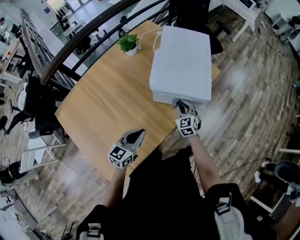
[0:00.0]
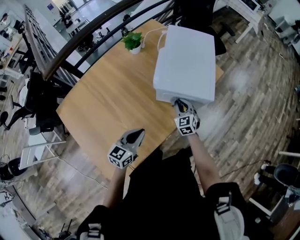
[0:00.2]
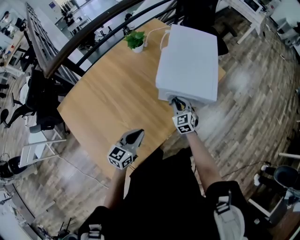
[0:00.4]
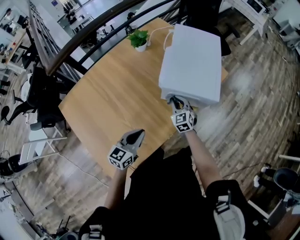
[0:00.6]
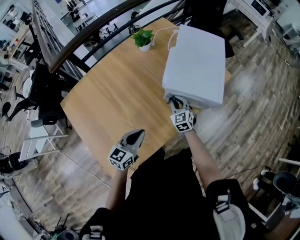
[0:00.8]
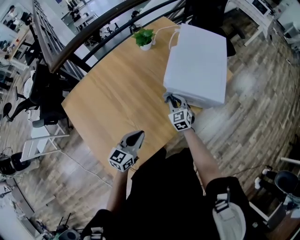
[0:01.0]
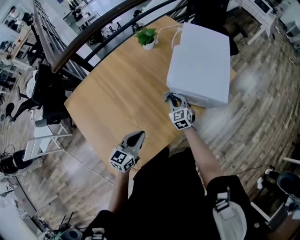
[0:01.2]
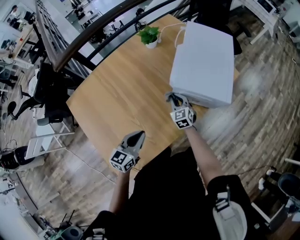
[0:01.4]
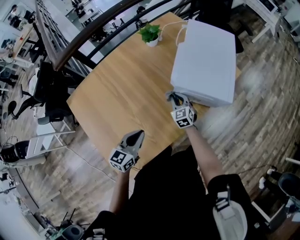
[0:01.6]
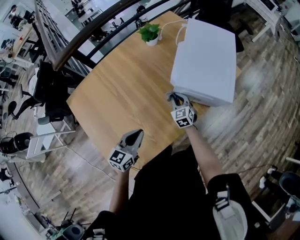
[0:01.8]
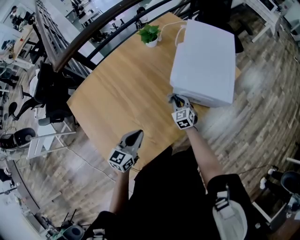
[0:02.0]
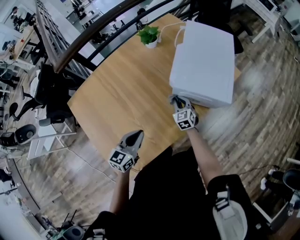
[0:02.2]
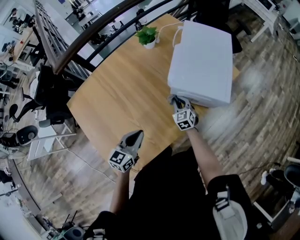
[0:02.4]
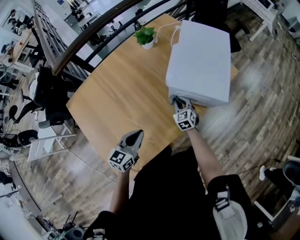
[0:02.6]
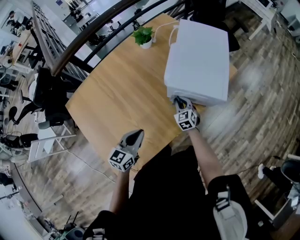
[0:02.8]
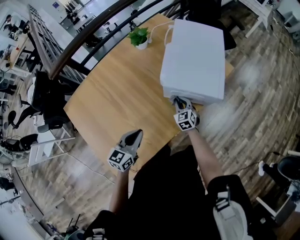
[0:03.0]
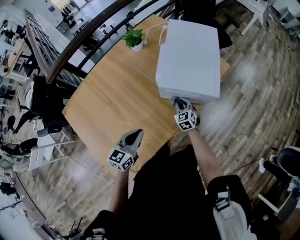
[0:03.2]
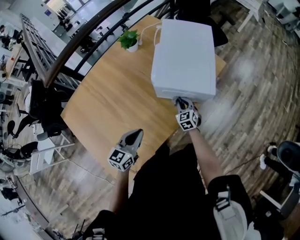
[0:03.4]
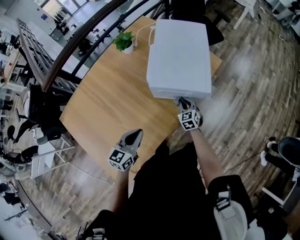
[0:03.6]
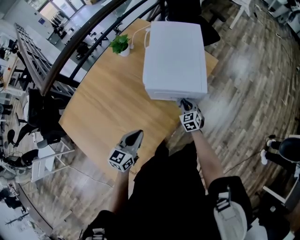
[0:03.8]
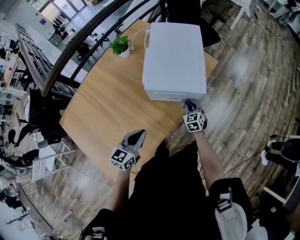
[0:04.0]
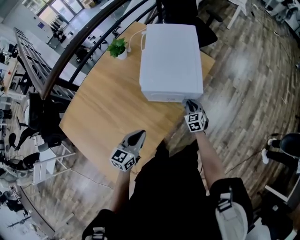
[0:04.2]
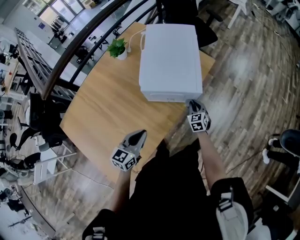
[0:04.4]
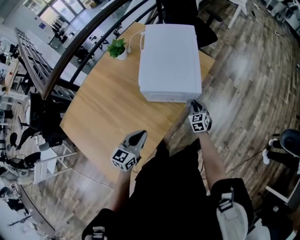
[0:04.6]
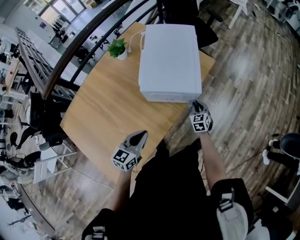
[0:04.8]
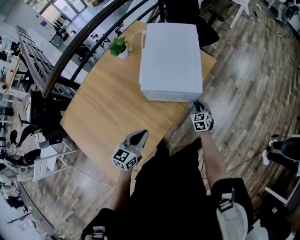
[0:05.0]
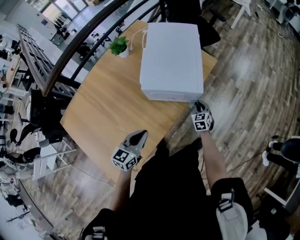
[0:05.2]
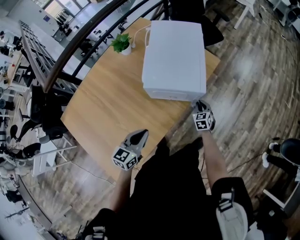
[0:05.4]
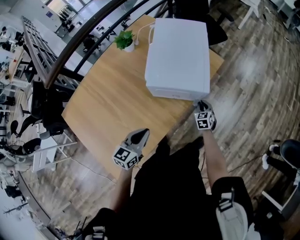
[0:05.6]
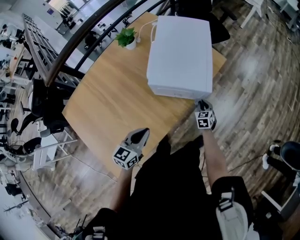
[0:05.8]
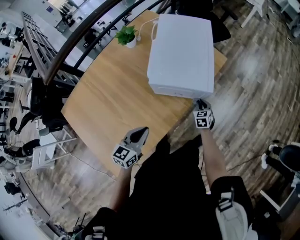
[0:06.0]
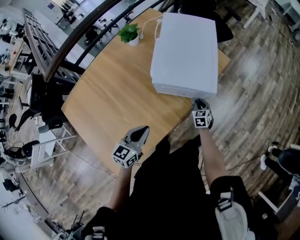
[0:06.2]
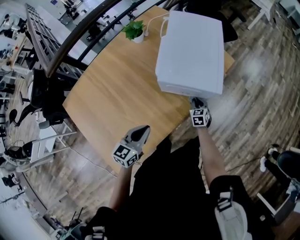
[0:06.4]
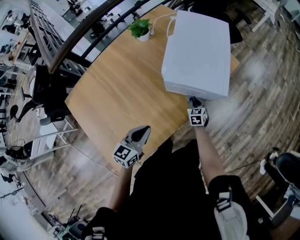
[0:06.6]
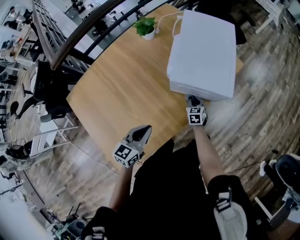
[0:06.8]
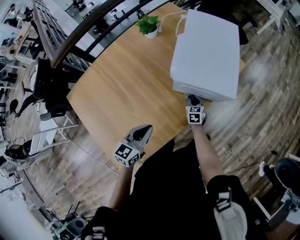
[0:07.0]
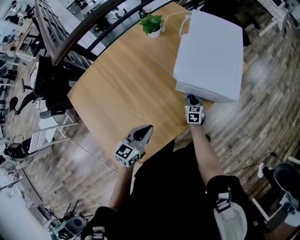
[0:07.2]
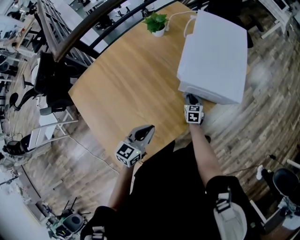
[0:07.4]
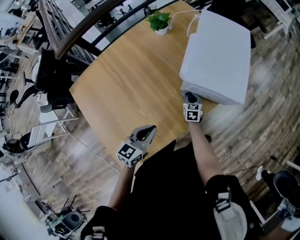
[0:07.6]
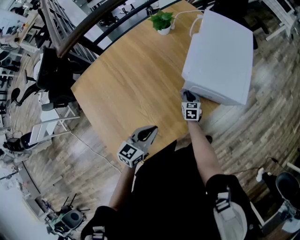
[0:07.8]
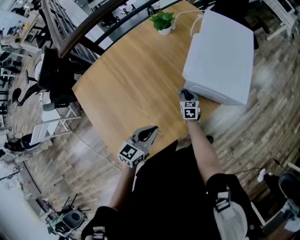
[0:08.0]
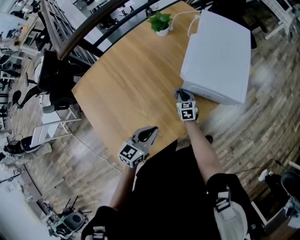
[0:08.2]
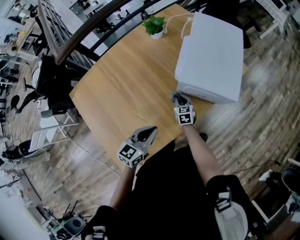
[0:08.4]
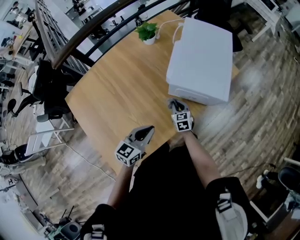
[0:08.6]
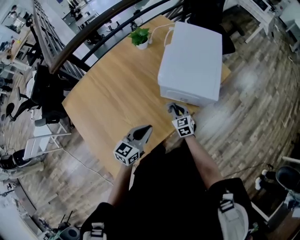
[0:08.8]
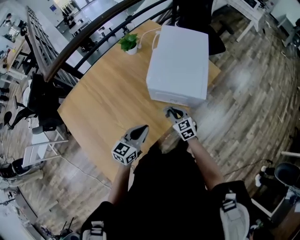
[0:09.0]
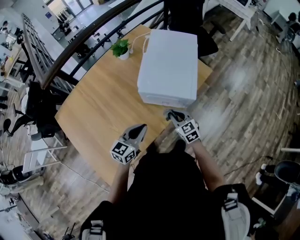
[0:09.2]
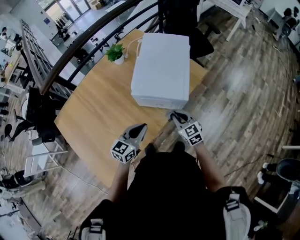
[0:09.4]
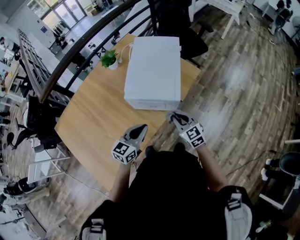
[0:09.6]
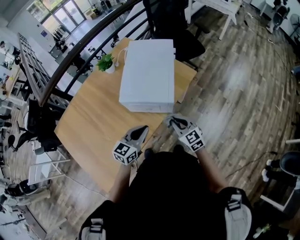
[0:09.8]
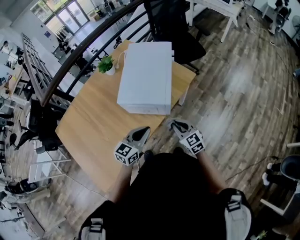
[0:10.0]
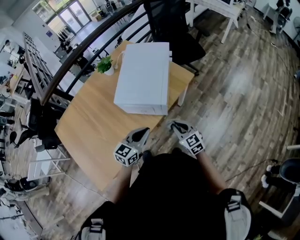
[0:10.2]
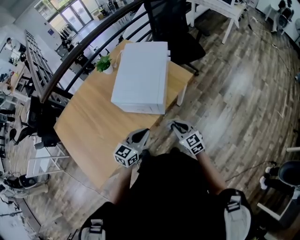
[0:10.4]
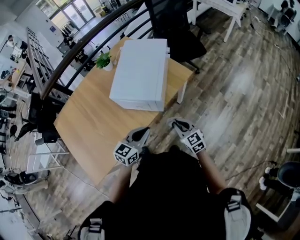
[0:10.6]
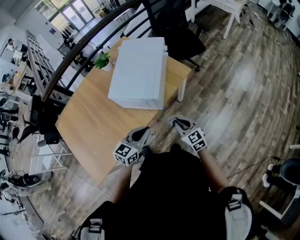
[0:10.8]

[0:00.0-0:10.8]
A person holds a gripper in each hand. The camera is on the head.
0:00.0 to 0:01.6: The left gripper goes about 10 cm to the left. Meanwhile the right gripper is displaced to the left by roughly 15 cm.
0:01.6 to 0:03.0: The right gripper goes some 10 cm to the right.
0:03.0 to 0:04.6: The left gripper heads to the right, covering some 10 cm, while the right gripper travels to the right by roughly 20 cm.
0:04.6 to 0:06.2: The right gripper goes about 5 cm downward.
0:06.2 to 0:07.8: The left gripper goes about 10 cm to the left, while the right gripper travels to the left by about 25 cm.
0:07.8 to 0:09.2: The left gripper heads to the right, forward and upward, covering some 15 cm, while the right gripper heads upward, to the right and backward, covering approximately 25 cm, and swivels some 30 degrees.
0:09.2 to 0:10.8: Both grippers move to the right, approximately 20 cm.

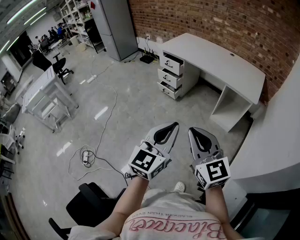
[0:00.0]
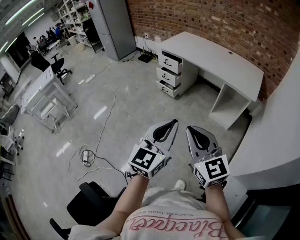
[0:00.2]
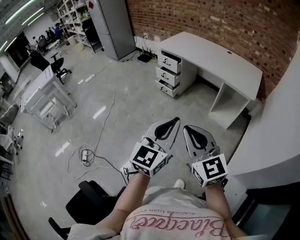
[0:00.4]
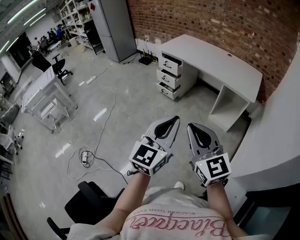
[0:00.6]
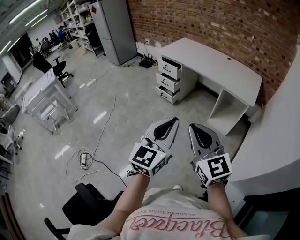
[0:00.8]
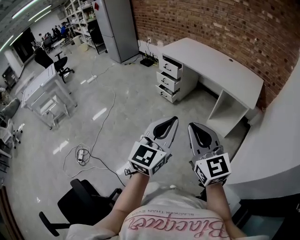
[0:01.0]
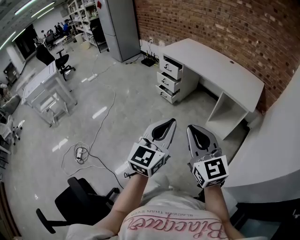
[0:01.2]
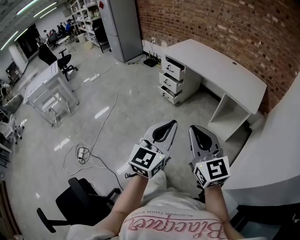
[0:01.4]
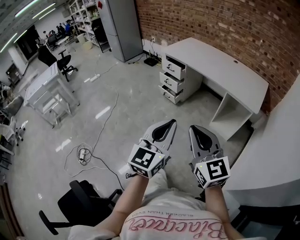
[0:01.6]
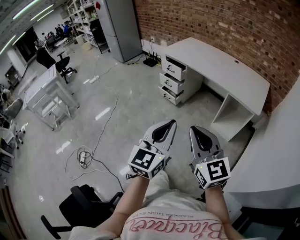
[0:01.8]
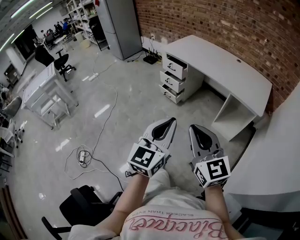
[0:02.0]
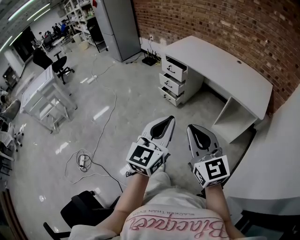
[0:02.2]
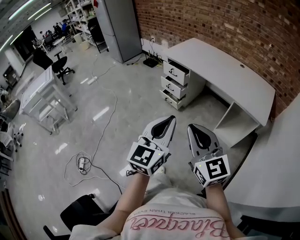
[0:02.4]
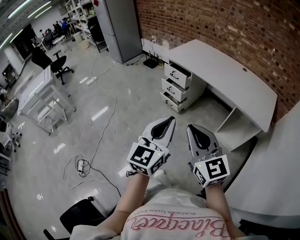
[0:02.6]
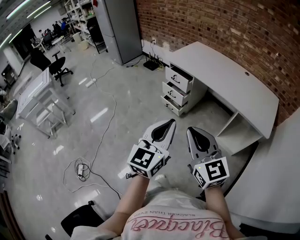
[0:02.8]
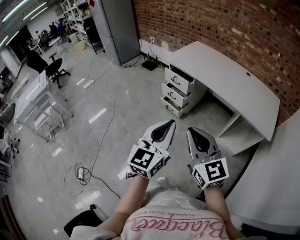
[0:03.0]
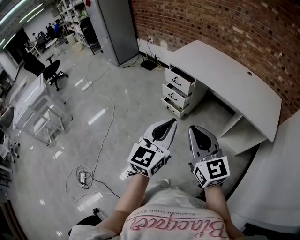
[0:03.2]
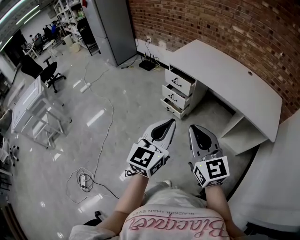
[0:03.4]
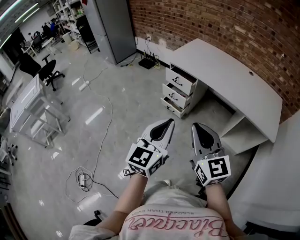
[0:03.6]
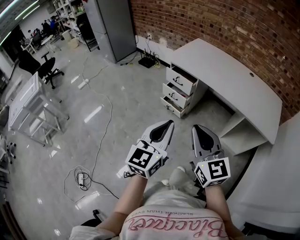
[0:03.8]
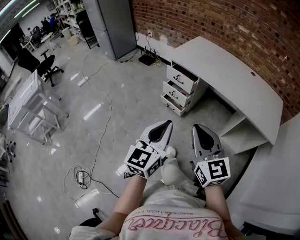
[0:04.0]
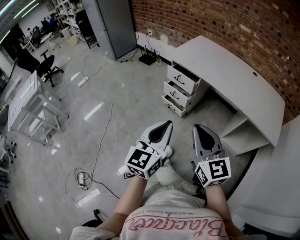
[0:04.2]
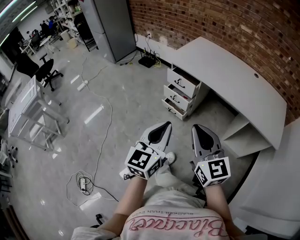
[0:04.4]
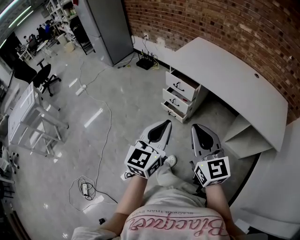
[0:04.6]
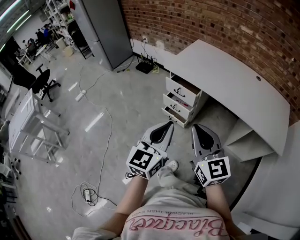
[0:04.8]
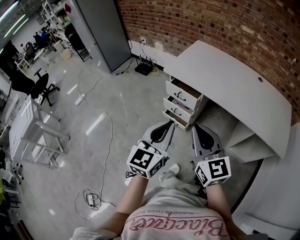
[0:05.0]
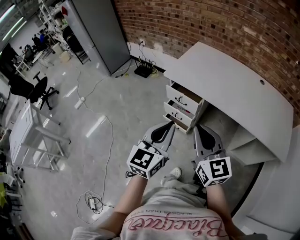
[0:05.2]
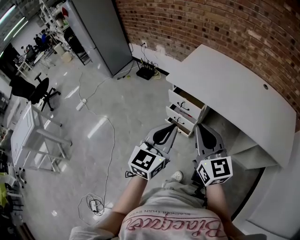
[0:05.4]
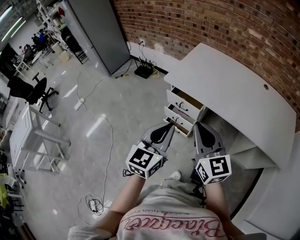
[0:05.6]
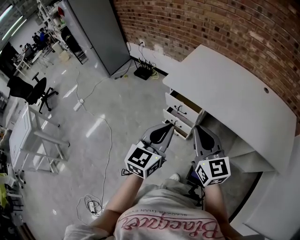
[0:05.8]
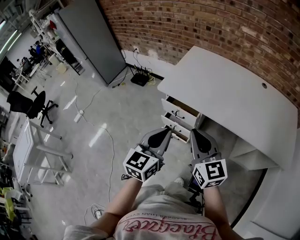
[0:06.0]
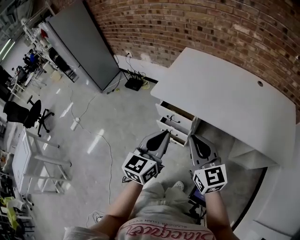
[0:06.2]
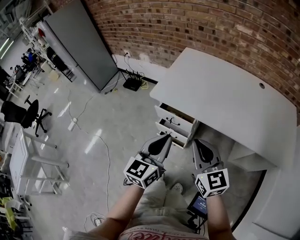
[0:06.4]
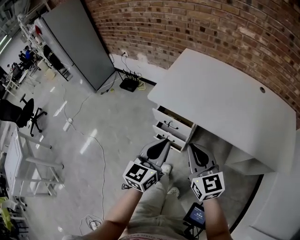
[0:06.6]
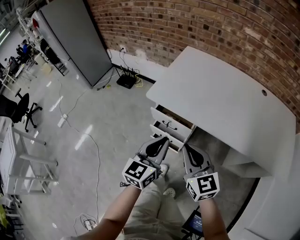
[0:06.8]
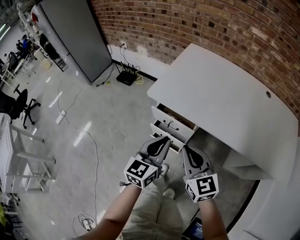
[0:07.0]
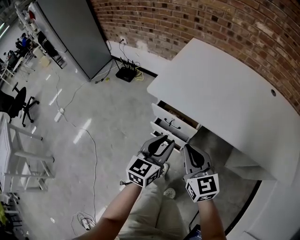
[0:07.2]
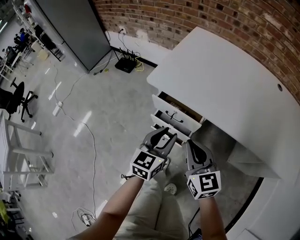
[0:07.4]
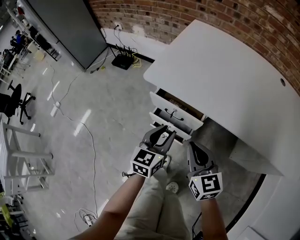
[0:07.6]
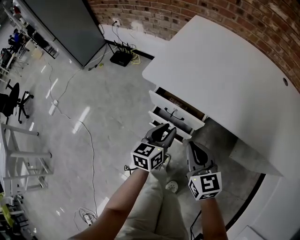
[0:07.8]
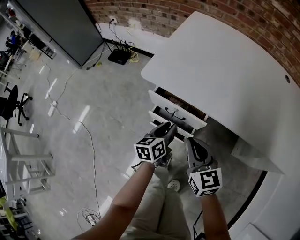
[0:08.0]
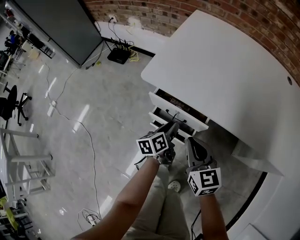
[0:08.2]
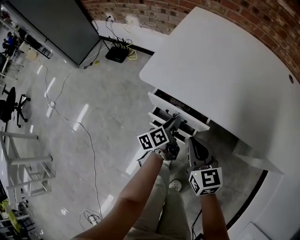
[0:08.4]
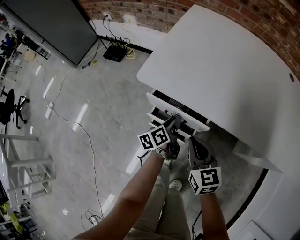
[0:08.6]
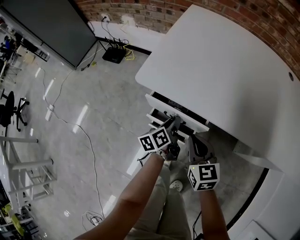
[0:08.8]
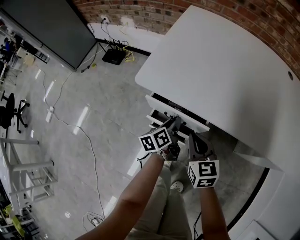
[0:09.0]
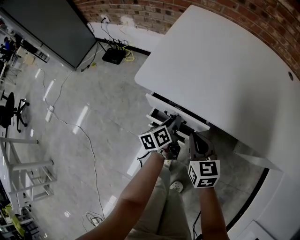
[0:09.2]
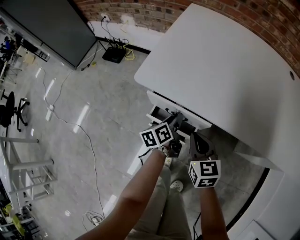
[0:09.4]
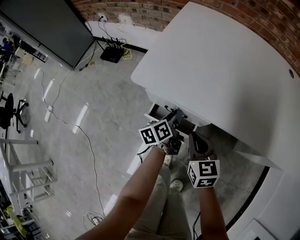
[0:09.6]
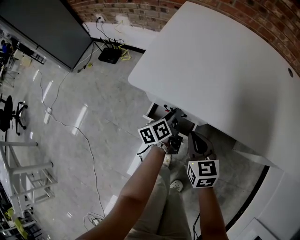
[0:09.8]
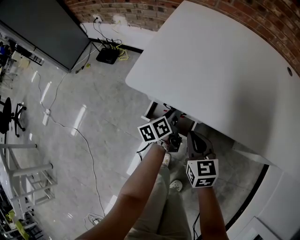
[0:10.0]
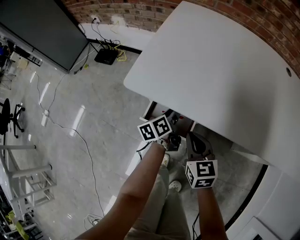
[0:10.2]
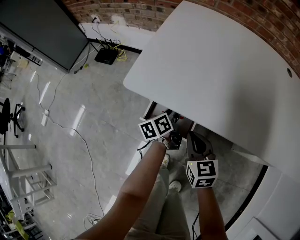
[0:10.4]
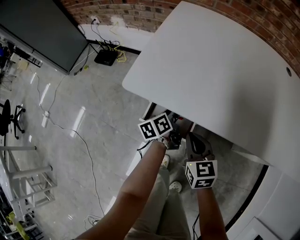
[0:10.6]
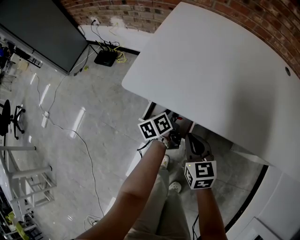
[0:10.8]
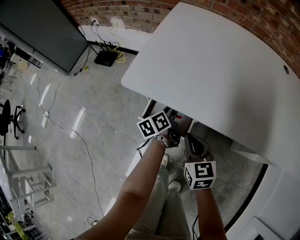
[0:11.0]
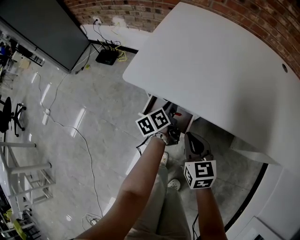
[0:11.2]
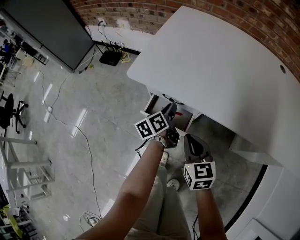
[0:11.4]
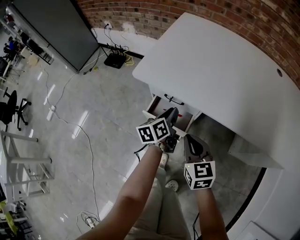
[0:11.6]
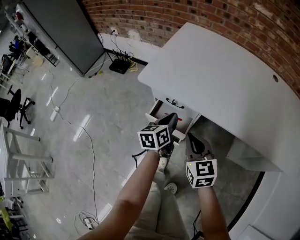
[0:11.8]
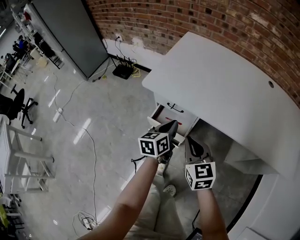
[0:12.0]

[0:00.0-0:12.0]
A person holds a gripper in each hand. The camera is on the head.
0:00.0 to 0:01.6: The right gripper moves some 5 cm.
0:01.6 to 0:03.0: The grippers both shift forward by approximately 25 cm.
0:03.0 to 0:04.4: The left gripper moves forward and to the left, roughly 15 cm. Meanwhile the right gripper moves forward, about 15 cm.
0:04.4 to 0:06.0: Both grippers travel together forward, about 30 cm.
0:06.0 to 0:07.6: Both grippers travel together downward and forward, approximately 30 cm. The left gripper opens its fingers.
0:07.6 to 0:09.0: The grippers both shift downward and forward by approximately 15 cm. The left gripper rotates around the line of its fingers by about 50 degrees, counterclockwise from behind.
0:09.0 to 0:10.4: The left gripper goes roughly 5 cm forward.
0:10.4 to 0:12.0: Both grippers move upward and backward, about 20 cm. The left gripper swivels some 20 degrees, and closes its fingers.

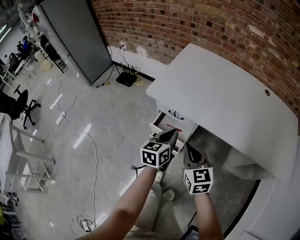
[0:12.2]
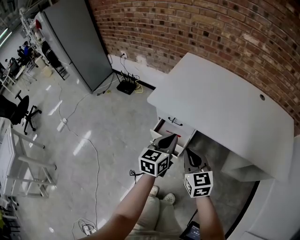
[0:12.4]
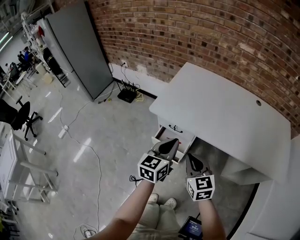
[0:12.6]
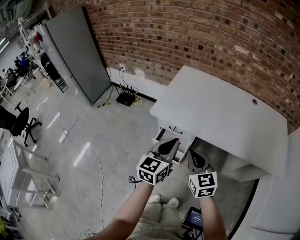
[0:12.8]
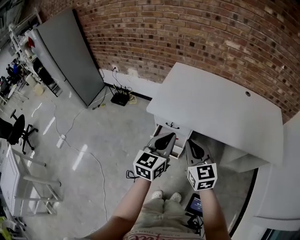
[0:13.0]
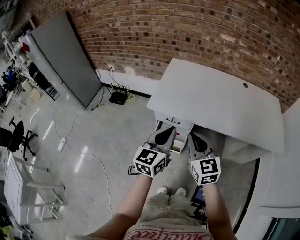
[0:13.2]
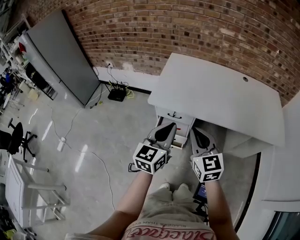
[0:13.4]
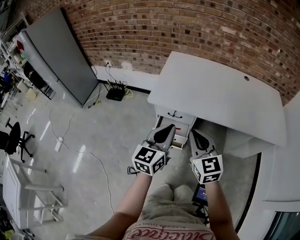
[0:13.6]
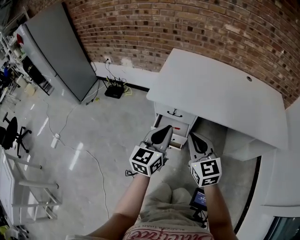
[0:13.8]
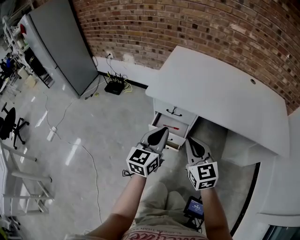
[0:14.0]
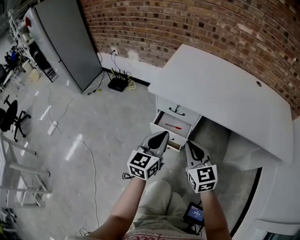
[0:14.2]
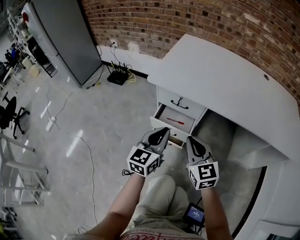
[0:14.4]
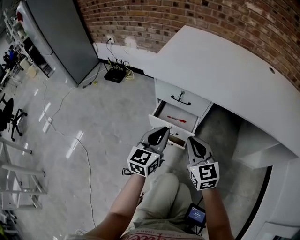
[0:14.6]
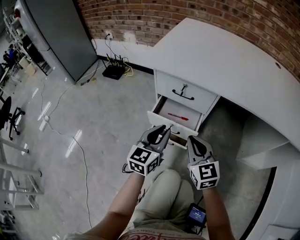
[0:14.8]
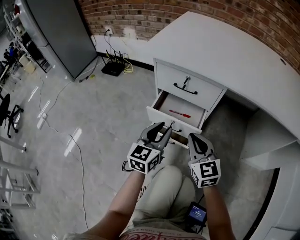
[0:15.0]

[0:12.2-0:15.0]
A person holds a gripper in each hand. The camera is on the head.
0:12.2 to 0:13.6: The left gripper is displaced upward and backward by roughly 20 cm, and swivels roughly 20 degrees, while the right gripper heads upward, covering approximately 15 cm.
0:13.6 to 0:15.0: The grippers both shift downward by approximately 40 cm. The left gripper opens its fingers.
